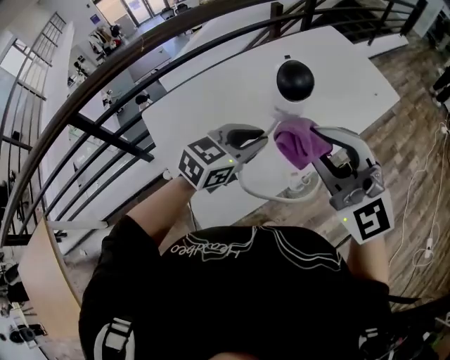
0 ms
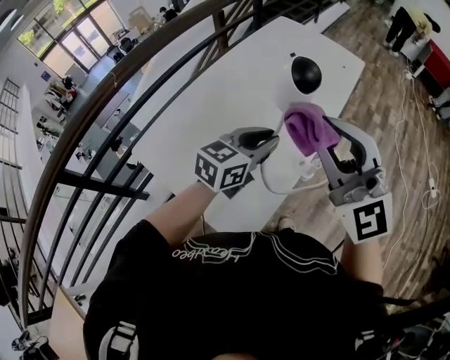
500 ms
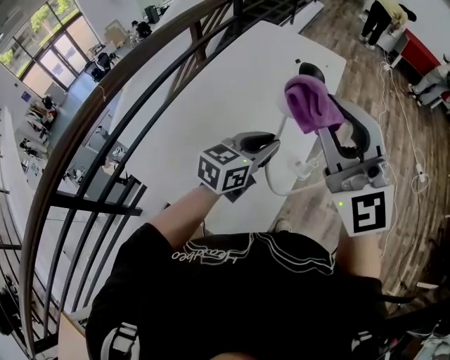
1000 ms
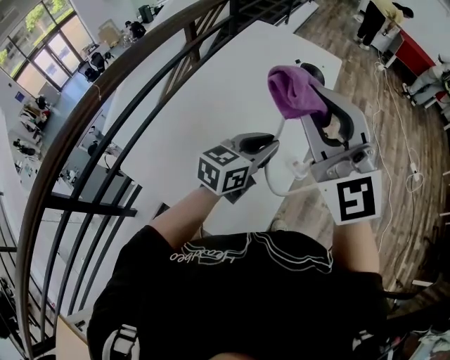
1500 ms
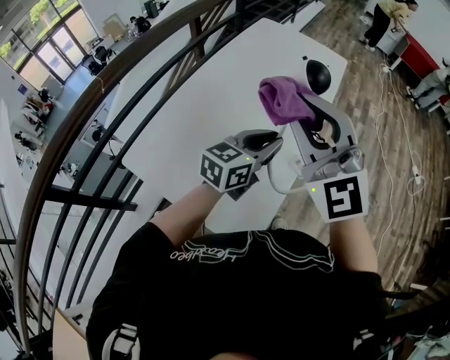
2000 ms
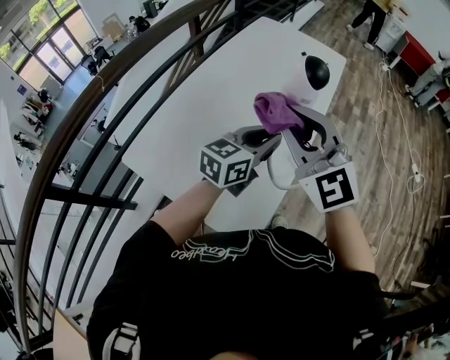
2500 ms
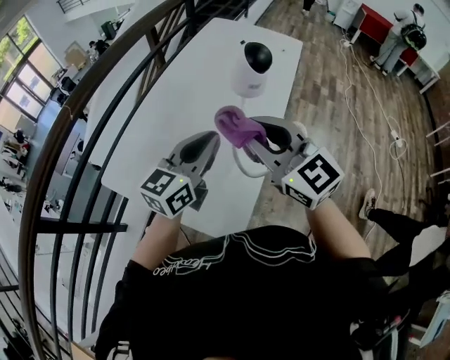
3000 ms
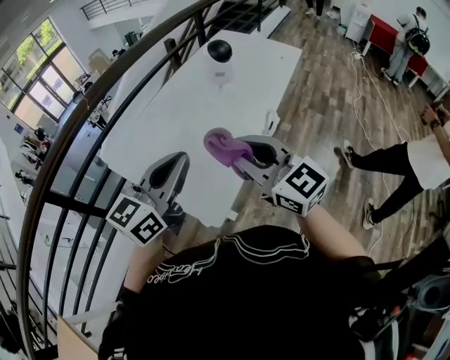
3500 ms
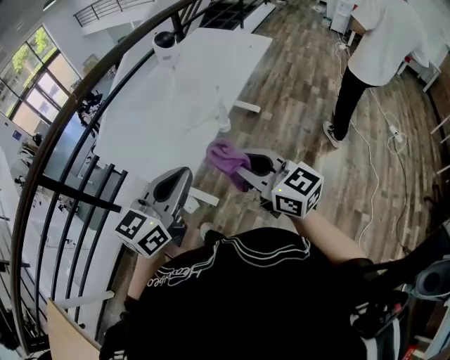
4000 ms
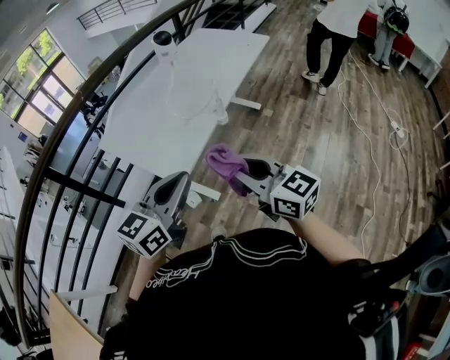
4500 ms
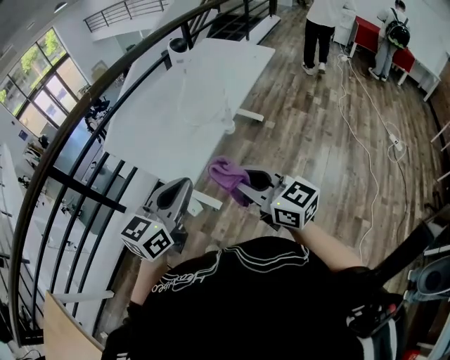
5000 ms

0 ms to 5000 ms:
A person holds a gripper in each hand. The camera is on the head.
0 ms to 2500 ms: The left gripper rotates approximately 30 degrees. The right gripper reaches about 10 cm upward, then returns, and changes its angle by some 40 degrees.
2500 ms to 5000 ms: Both grippers are carried backward, some 40 cm. The right gripper rotates around the line of its fingers by about 40 degrees, clockwise from behind.

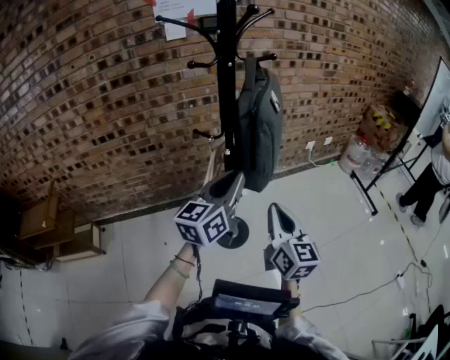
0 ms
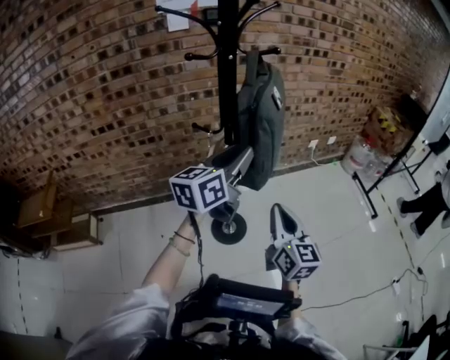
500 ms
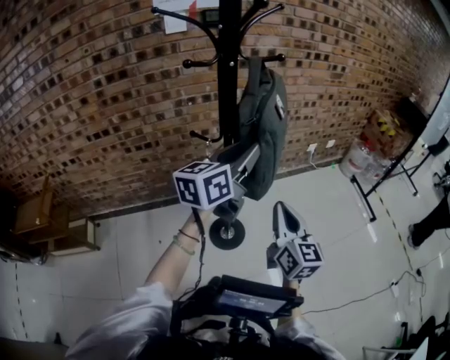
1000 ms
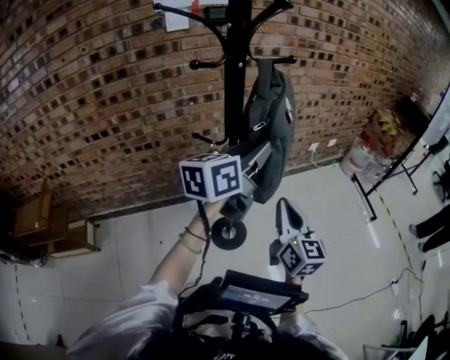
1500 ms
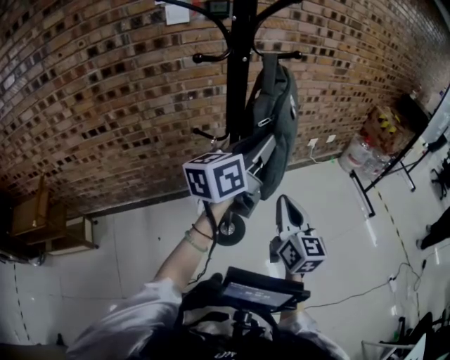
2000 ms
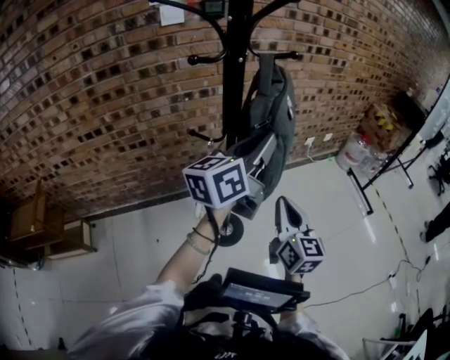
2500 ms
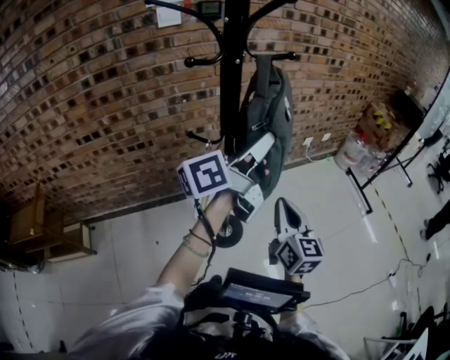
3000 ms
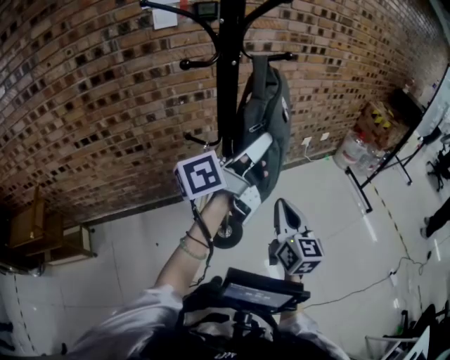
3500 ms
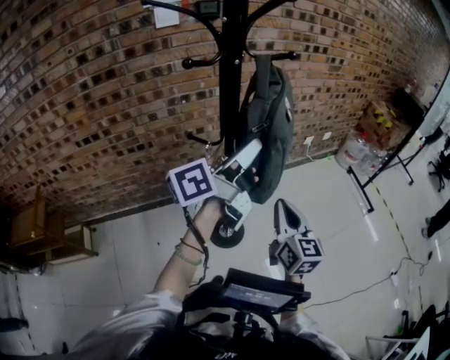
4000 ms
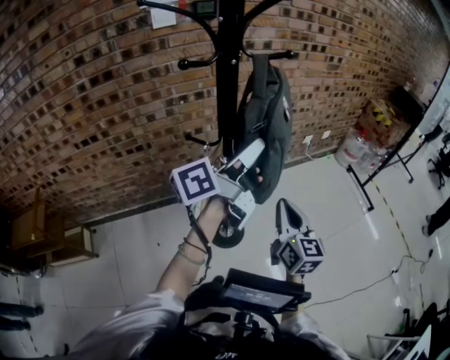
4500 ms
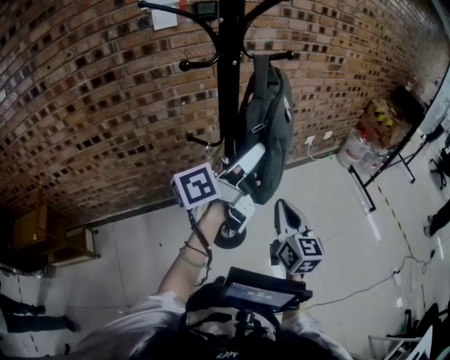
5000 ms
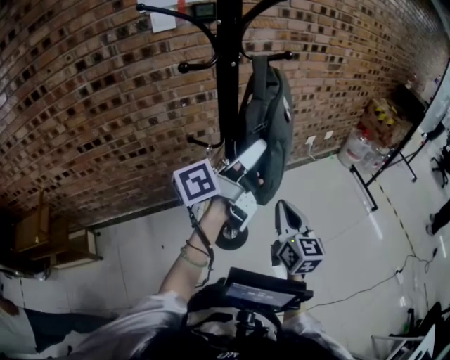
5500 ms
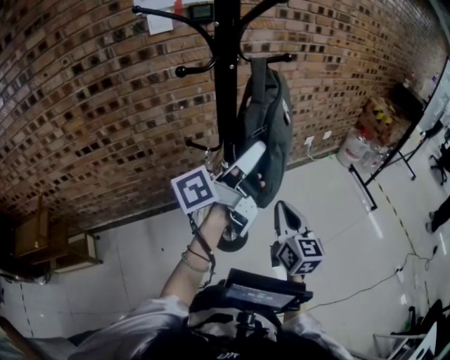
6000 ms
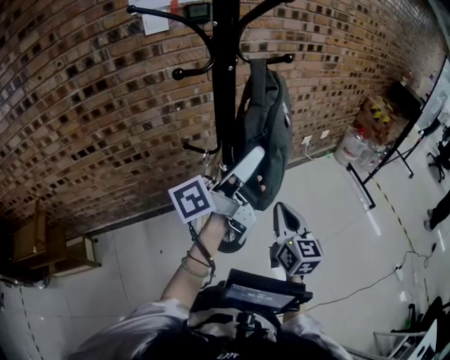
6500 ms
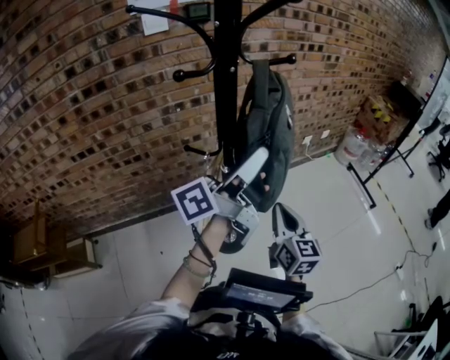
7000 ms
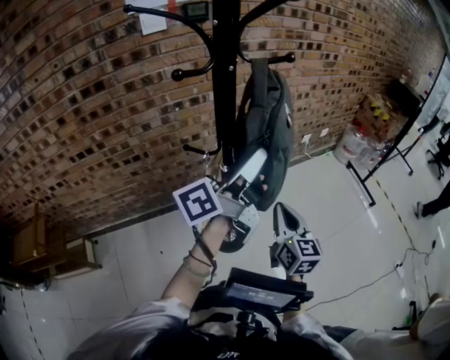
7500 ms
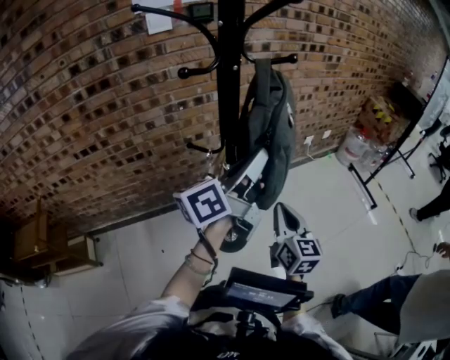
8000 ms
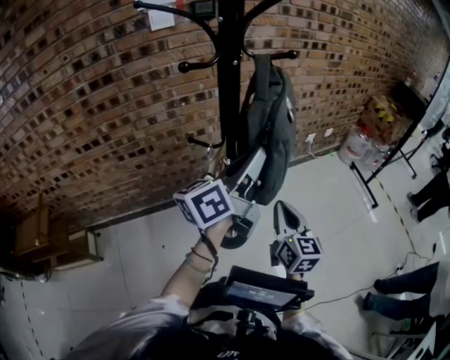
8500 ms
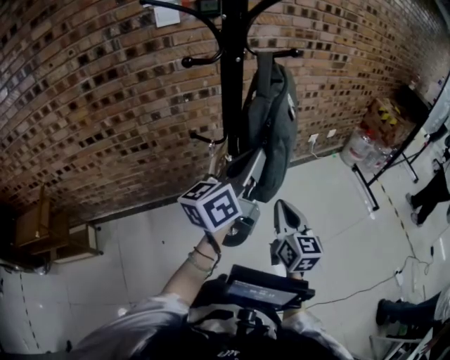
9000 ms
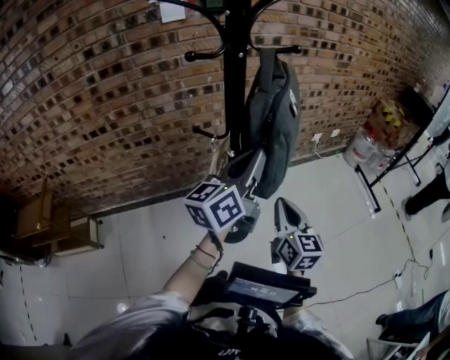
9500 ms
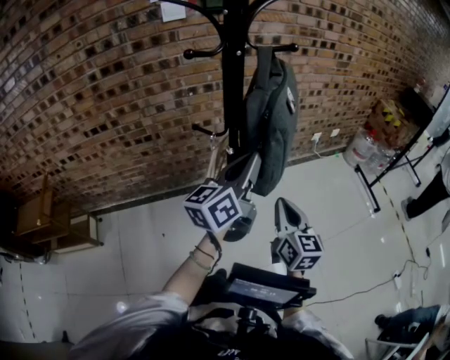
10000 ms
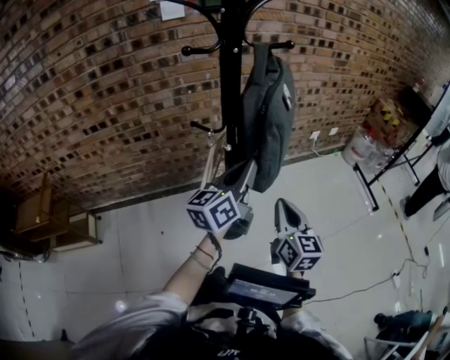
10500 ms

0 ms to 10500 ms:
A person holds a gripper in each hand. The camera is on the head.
0 ms to 2000 ms: The left gripper is displaced forward and upward by approximately 15 cm; the right gripper travels forward by approximately 10 cm.
2000 ms to 4000 ms: The left gripper turns by approximately 30 degrees.
4000 ms to 6500 ms: The left gripper opens its fingers.
6500 ms to 8500 ms: The left gripper swivels approximately 30 degrees, and closes its fingers.
8500 ms to 10500 ms: The left gripper is displaced downward by some 10 cm.

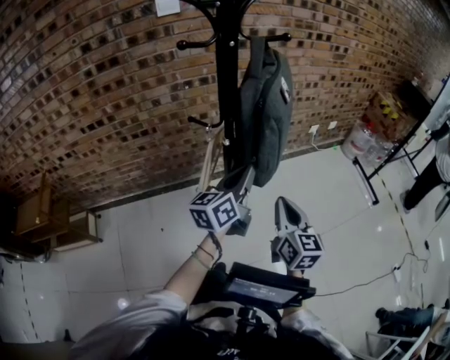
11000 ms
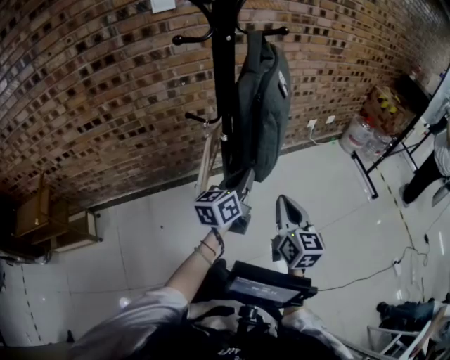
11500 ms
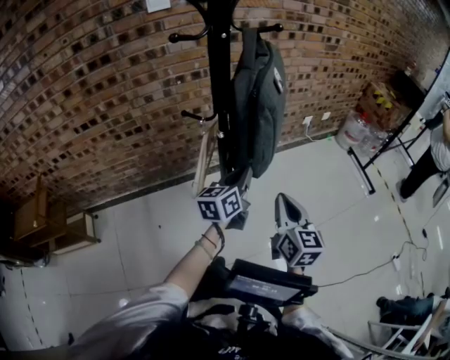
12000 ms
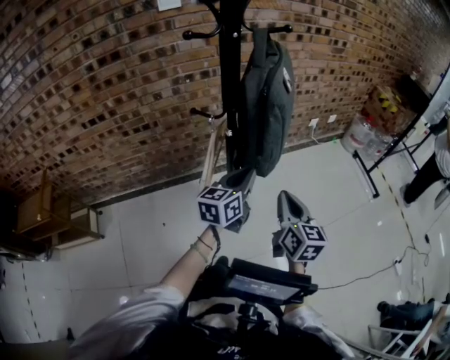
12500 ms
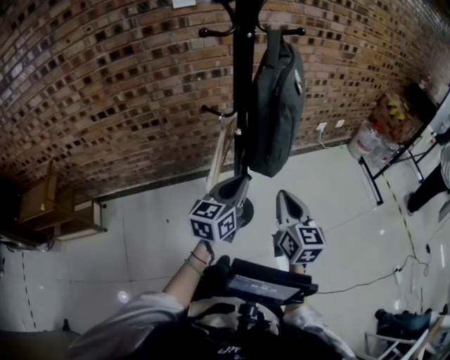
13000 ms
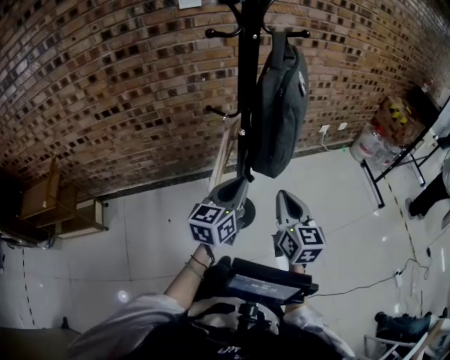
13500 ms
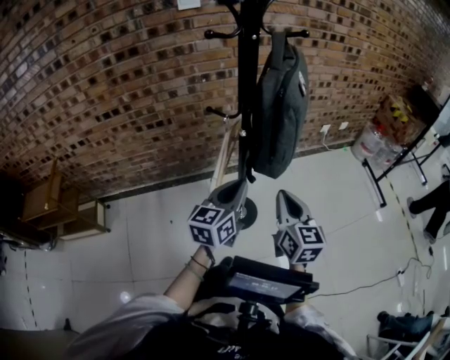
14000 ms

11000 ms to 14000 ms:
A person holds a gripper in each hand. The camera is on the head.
12500 ms to 14000 ms: The left gripper shifts approximately 10 cm backward and to the left.

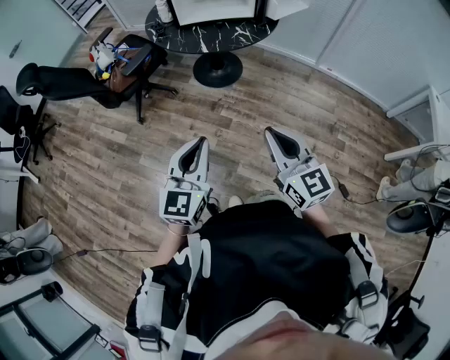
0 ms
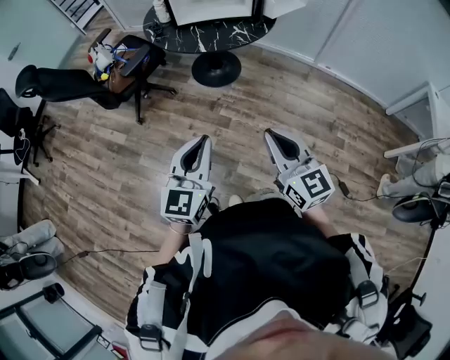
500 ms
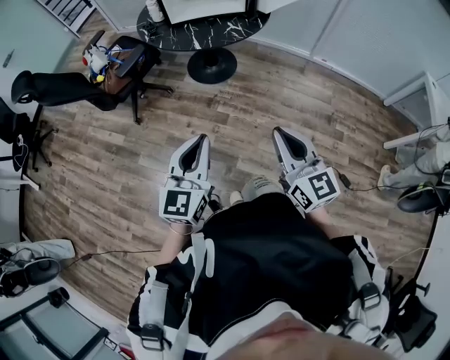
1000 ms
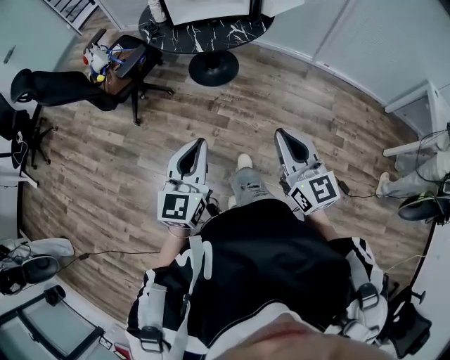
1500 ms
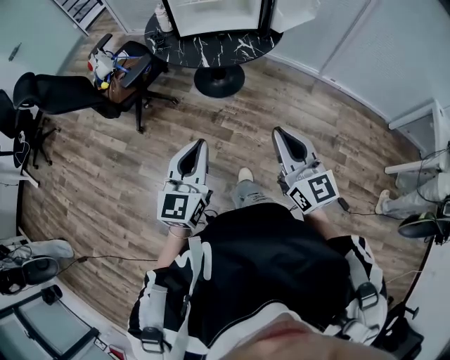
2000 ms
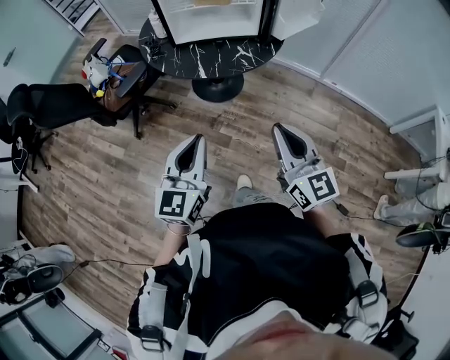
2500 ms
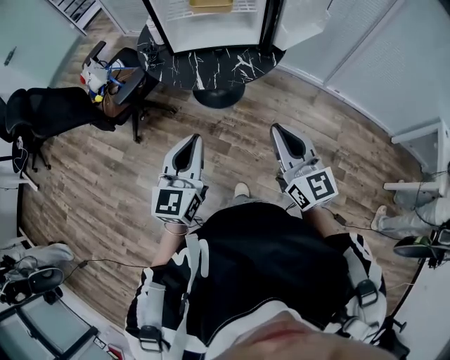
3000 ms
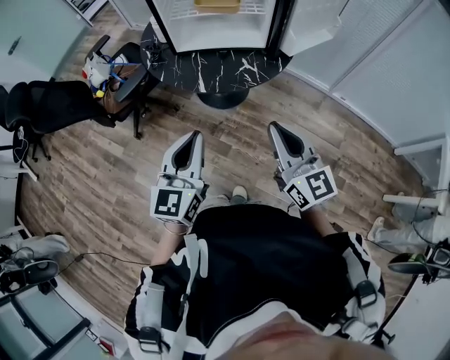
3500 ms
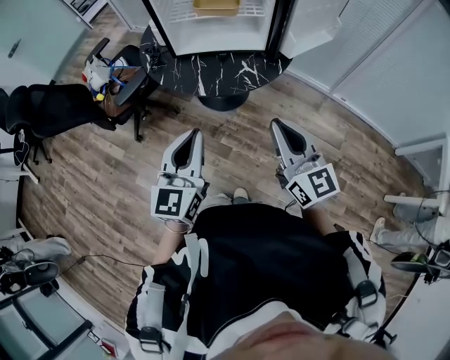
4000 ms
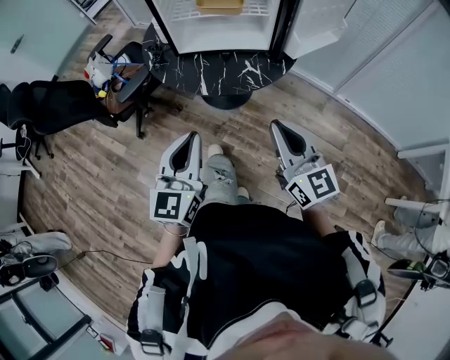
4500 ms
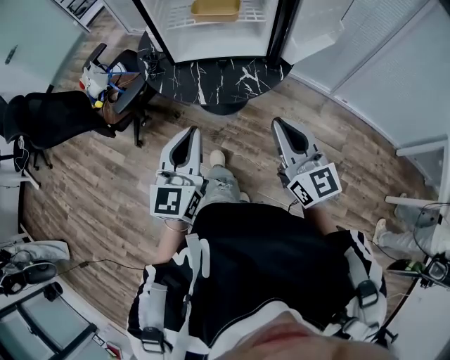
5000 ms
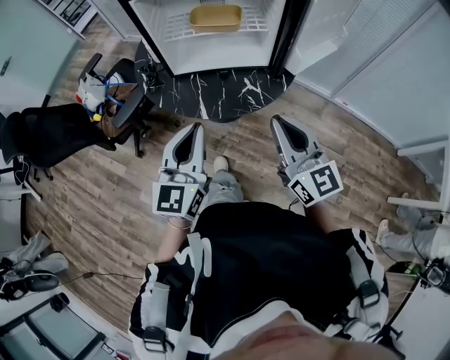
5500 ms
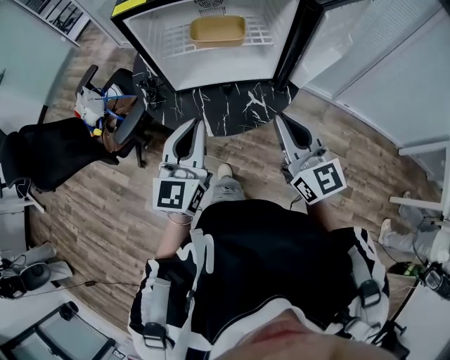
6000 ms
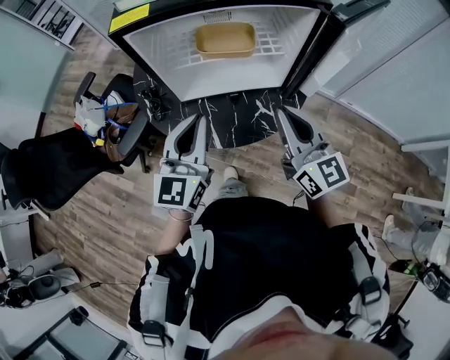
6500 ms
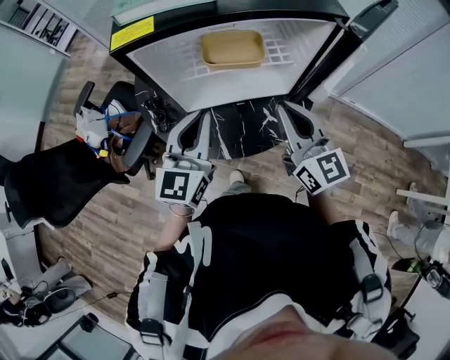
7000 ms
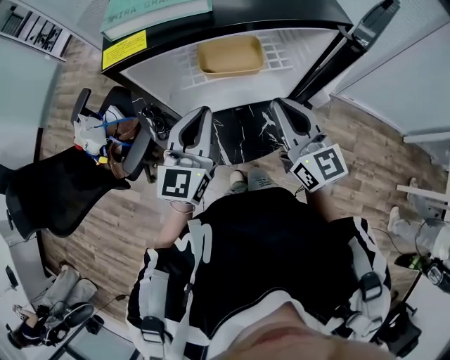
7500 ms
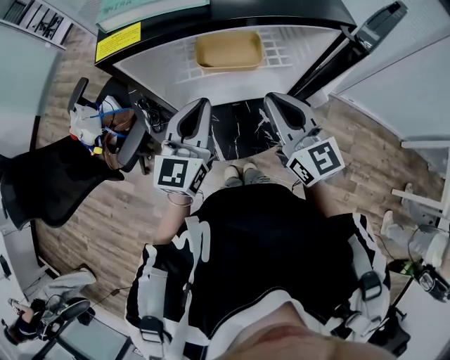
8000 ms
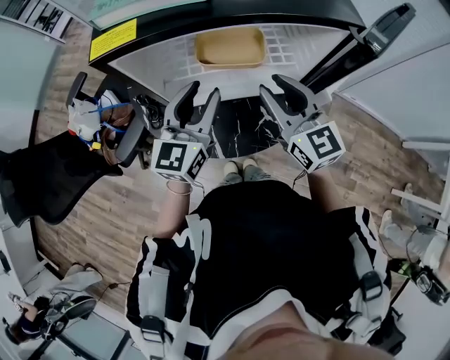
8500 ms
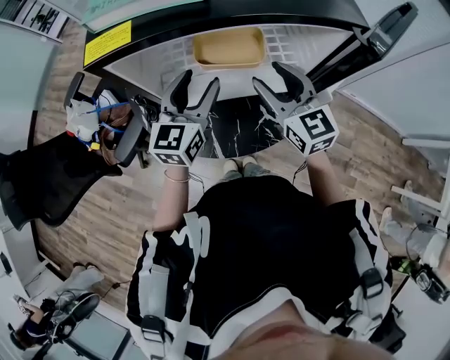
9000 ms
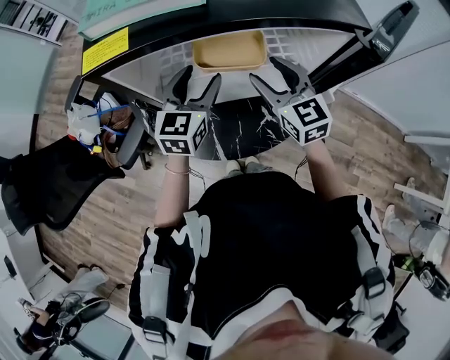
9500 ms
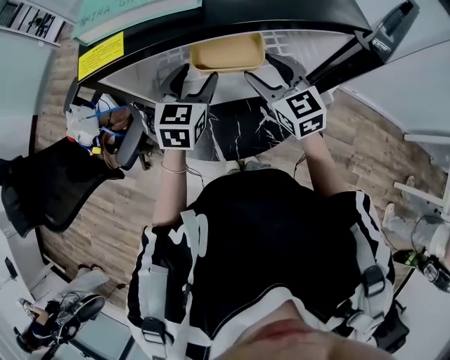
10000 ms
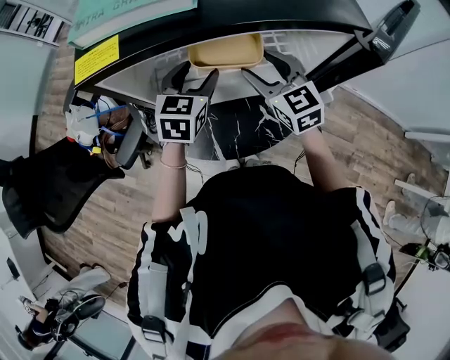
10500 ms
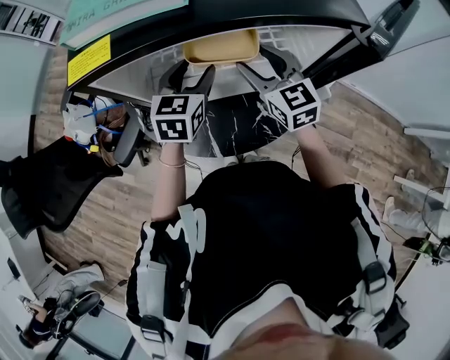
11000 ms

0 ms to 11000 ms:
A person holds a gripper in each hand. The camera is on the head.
0 ms to 2000 ms: The two grippers go roughly 10 cm forward.
2000 ms to 3500 ms: Both grippers move forward, some 15 cm.
3500 ms to 5500 ms: The two grippers go roughly 10 cm forward.
5500 ms to 7500 ms: Both grippers travel together forward, some 25 cm.
7500 ms to 9000 ms: Both grippers travel together forward, roughly 10 cm. The right gripper opens up; the left gripper opens.
9000 ms to 11000 ms: Both grippers move forward, roughly 5 cm. The left gripper rotates some 20 degrees.
